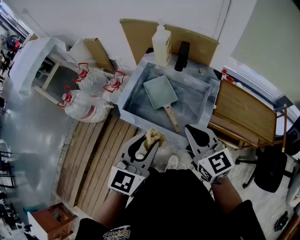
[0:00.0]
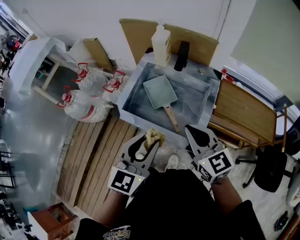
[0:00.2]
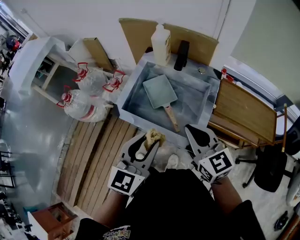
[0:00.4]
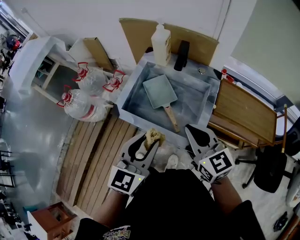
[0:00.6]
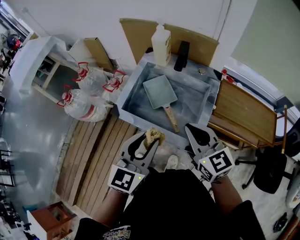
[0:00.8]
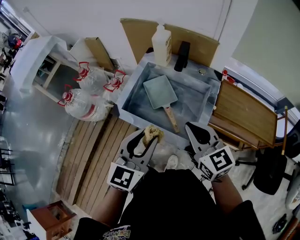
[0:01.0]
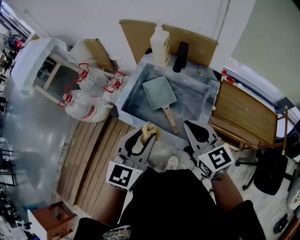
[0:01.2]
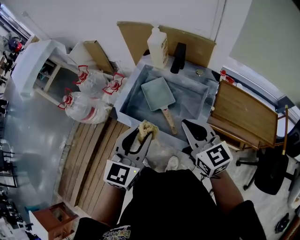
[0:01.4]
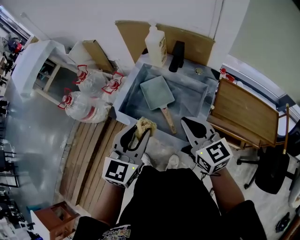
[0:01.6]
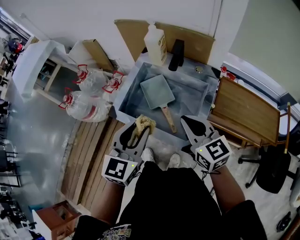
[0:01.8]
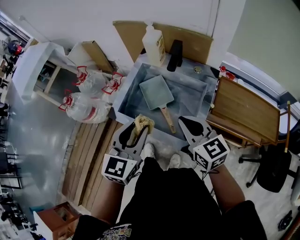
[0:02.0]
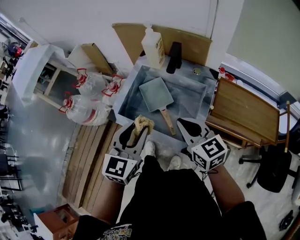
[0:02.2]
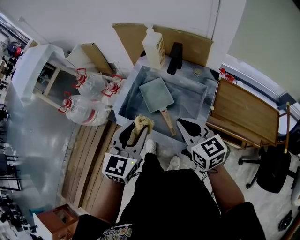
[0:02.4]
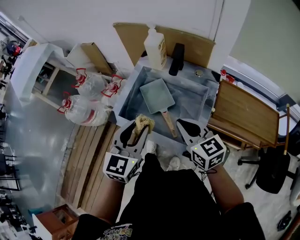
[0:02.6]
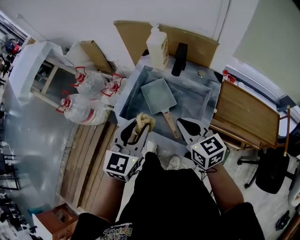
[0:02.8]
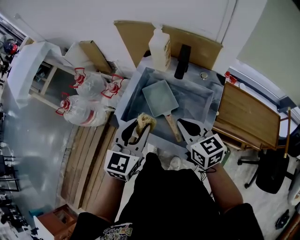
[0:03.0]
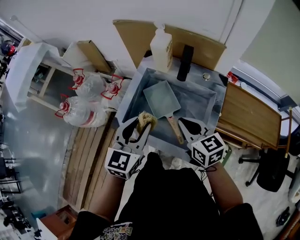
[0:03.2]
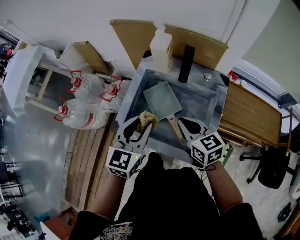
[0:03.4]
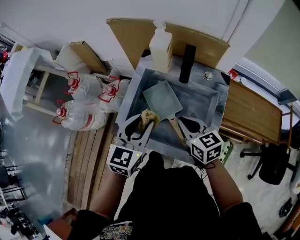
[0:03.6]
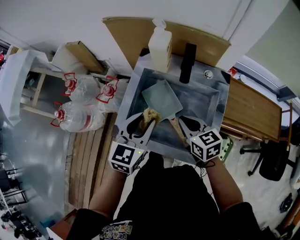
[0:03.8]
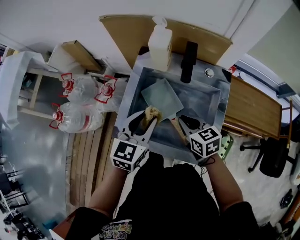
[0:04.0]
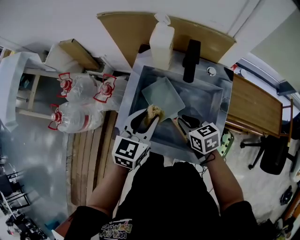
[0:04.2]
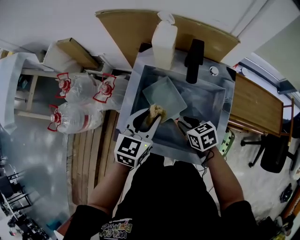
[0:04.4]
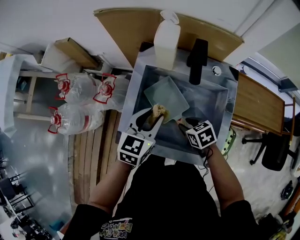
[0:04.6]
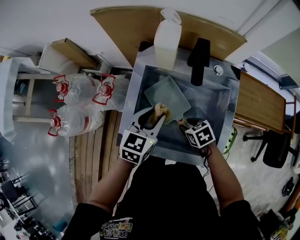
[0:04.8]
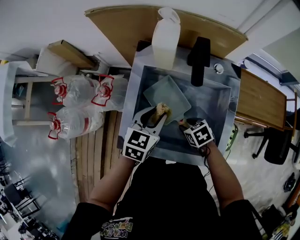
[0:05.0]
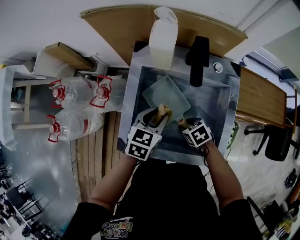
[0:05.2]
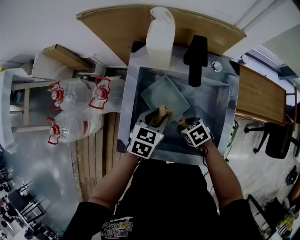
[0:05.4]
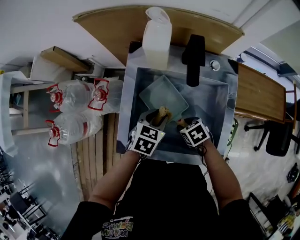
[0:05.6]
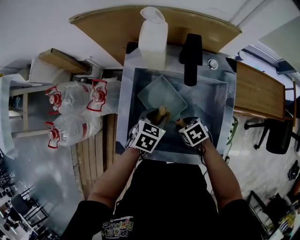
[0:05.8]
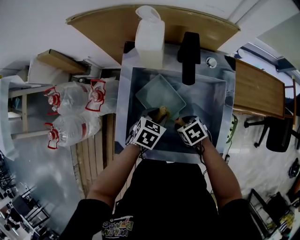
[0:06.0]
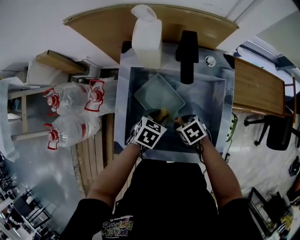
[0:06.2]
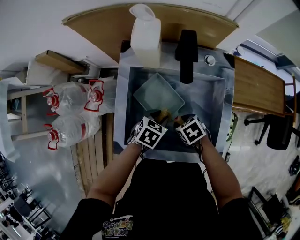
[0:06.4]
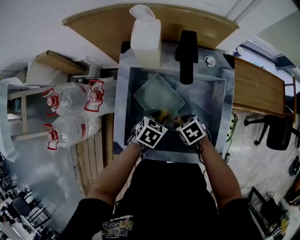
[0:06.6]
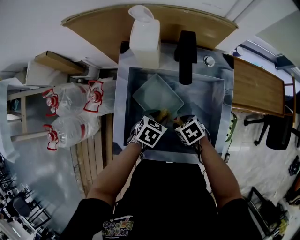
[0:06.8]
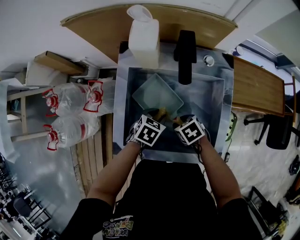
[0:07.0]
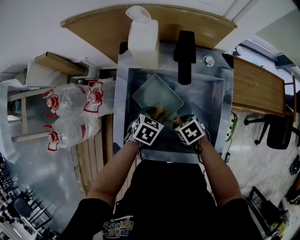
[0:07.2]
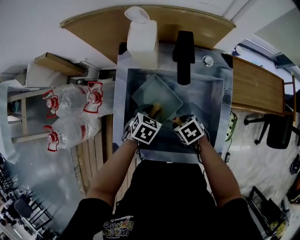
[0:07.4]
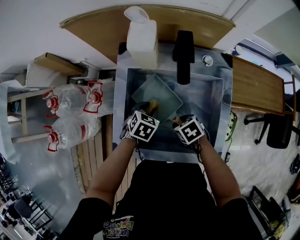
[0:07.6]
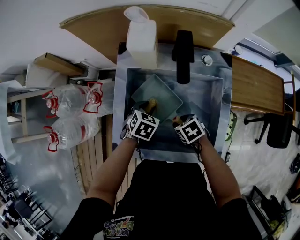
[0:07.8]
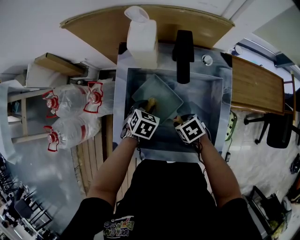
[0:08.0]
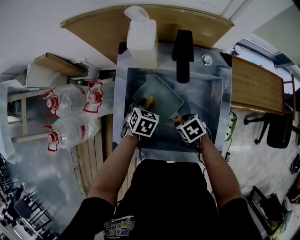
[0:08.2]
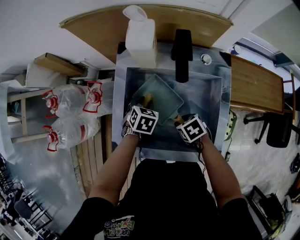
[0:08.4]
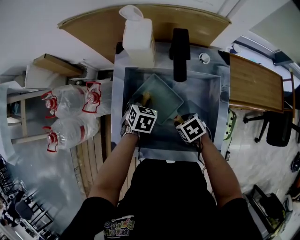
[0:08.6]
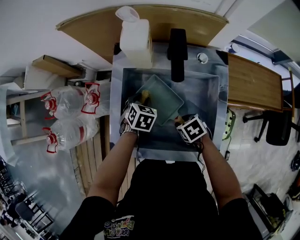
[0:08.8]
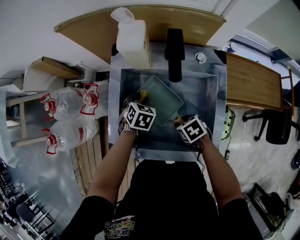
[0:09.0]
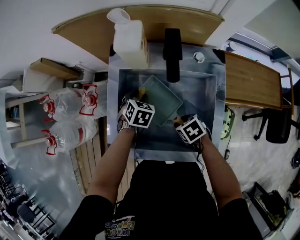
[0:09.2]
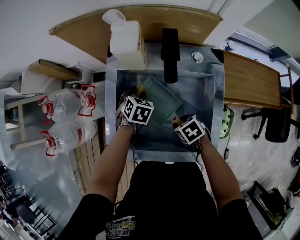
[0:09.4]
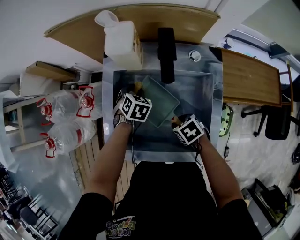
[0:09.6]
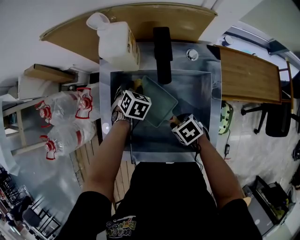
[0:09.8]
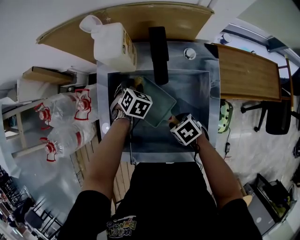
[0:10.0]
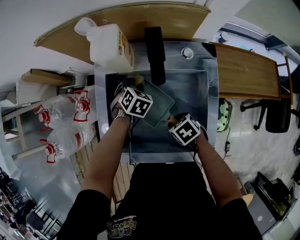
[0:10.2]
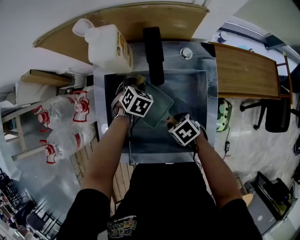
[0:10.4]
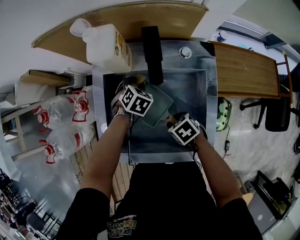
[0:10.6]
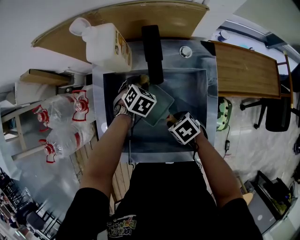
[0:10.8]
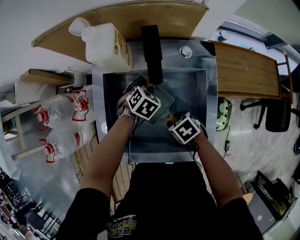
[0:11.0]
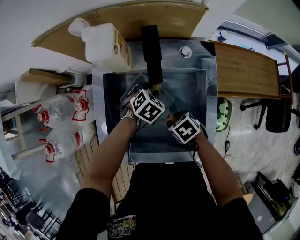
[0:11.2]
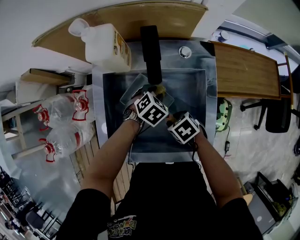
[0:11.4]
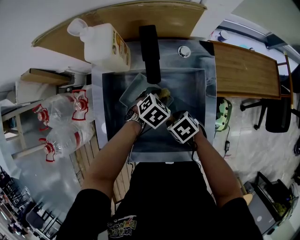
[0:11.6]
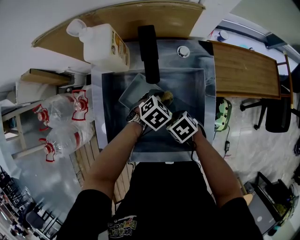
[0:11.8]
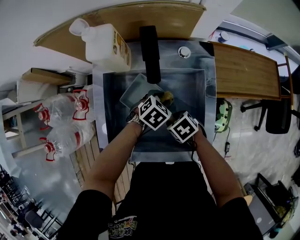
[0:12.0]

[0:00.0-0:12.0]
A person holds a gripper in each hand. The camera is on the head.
0:00.0 to 0:01.6: The grippers make only small movements.
0:01.6 to 0:03.0: The left gripper goes roughly 10 cm forward; the right gripper travels forward and downward by roughly 10 cm.
0:03.0 to 0:04.4: The right gripper heads downward and forward, covering some 20 cm, changes its angle by about 30 degrees, and opens up; the left gripper shifts approximately 15 cm forward and downward.
0:04.4 to 0:06.0: The left gripper goes about 15 cm downward, and rotates approximately 40 degrees; the right gripper travels downward by about 10 cm.
0:06.0 to 0:07.6: The grippers move only a little.
0:07.6 to 0:09.0: The left gripper goes roughly 5 cm forward.
0:09.0 to 0:10.4: The left gripper is displaced to the right by about 10 cm.
0:10.4 to 0:12.0: The left gripper shifts by about 15 cm, and turns by about 20 degrees.

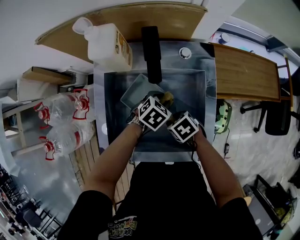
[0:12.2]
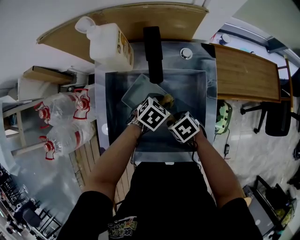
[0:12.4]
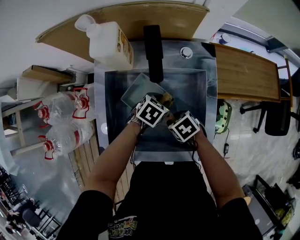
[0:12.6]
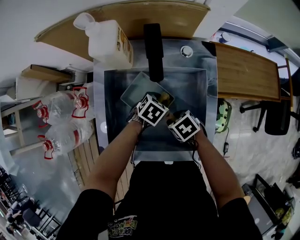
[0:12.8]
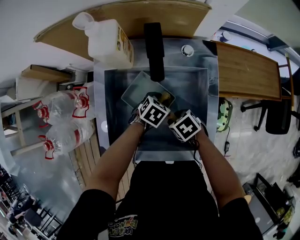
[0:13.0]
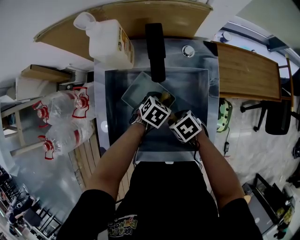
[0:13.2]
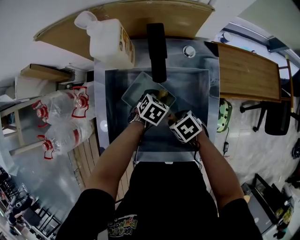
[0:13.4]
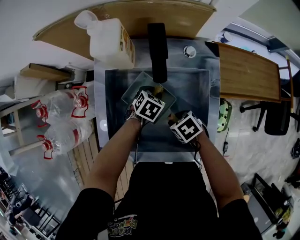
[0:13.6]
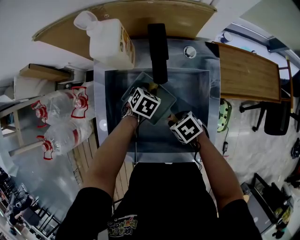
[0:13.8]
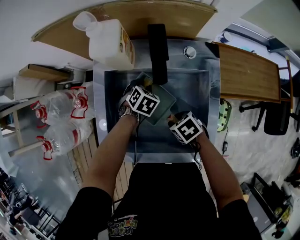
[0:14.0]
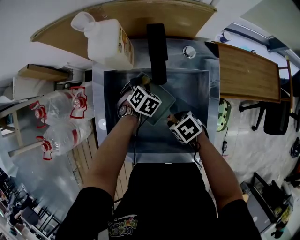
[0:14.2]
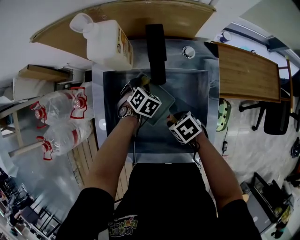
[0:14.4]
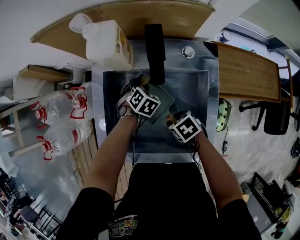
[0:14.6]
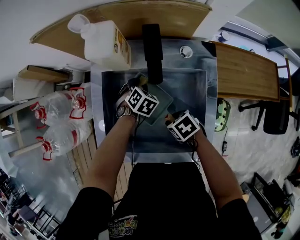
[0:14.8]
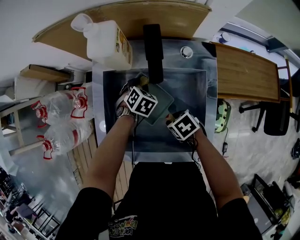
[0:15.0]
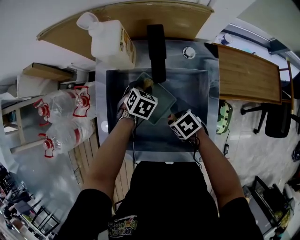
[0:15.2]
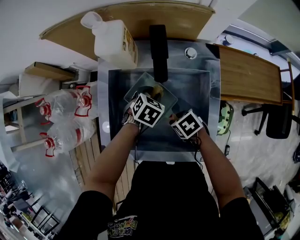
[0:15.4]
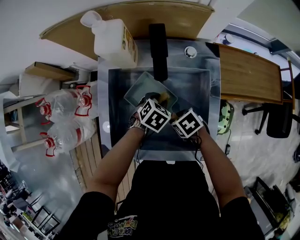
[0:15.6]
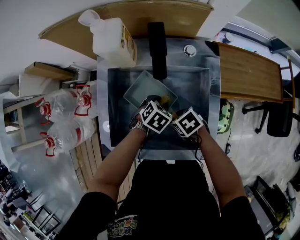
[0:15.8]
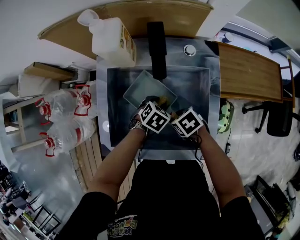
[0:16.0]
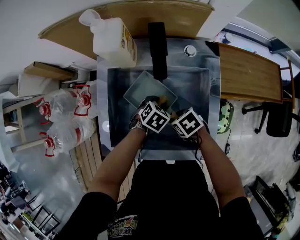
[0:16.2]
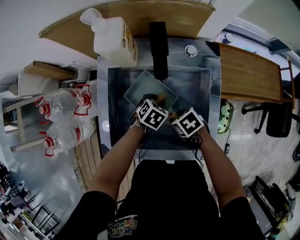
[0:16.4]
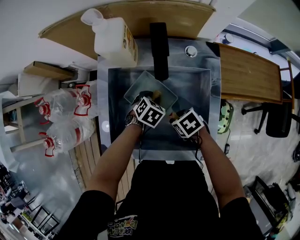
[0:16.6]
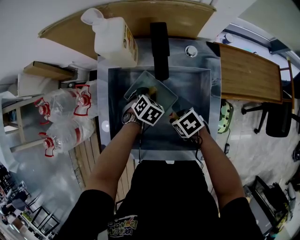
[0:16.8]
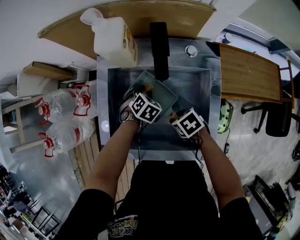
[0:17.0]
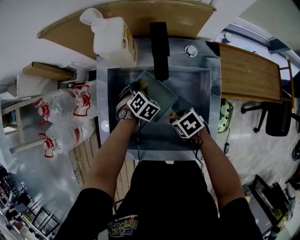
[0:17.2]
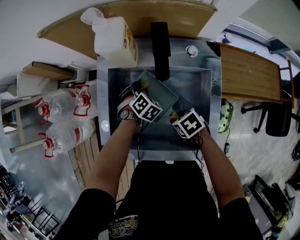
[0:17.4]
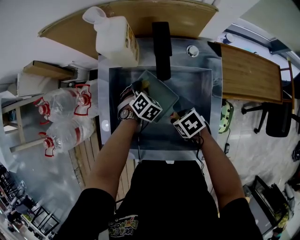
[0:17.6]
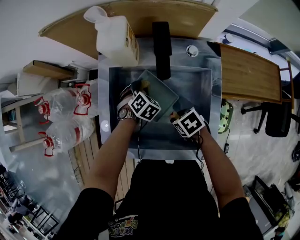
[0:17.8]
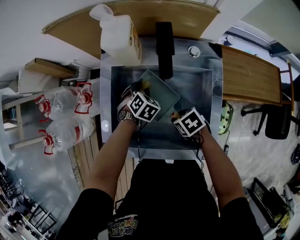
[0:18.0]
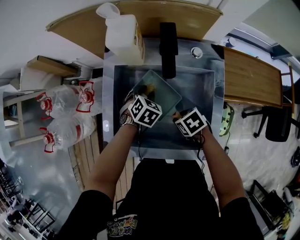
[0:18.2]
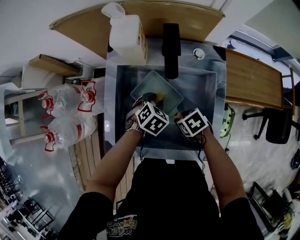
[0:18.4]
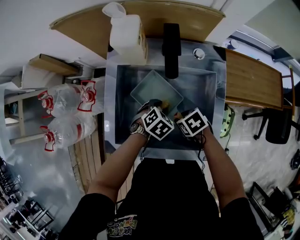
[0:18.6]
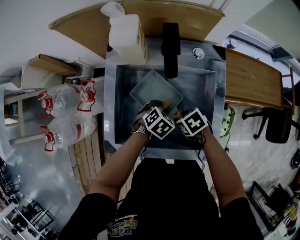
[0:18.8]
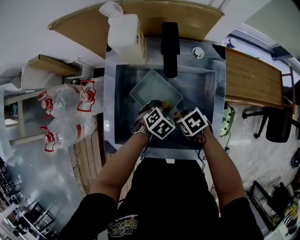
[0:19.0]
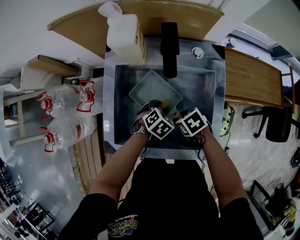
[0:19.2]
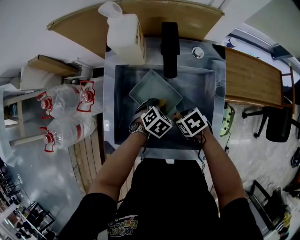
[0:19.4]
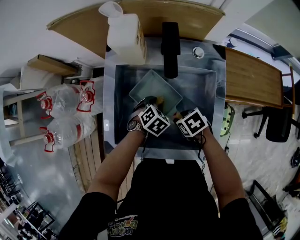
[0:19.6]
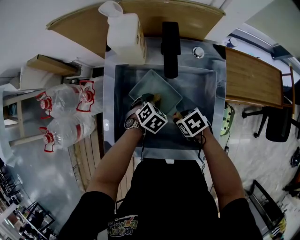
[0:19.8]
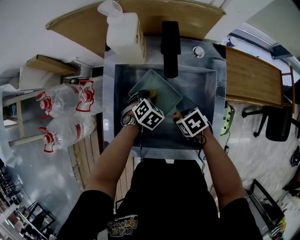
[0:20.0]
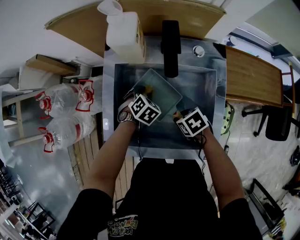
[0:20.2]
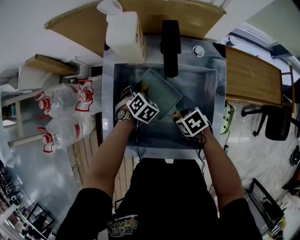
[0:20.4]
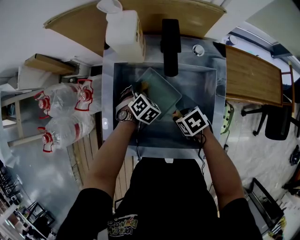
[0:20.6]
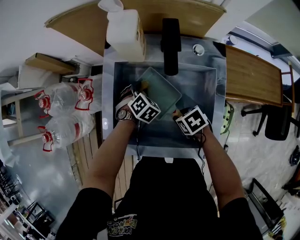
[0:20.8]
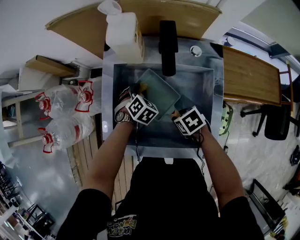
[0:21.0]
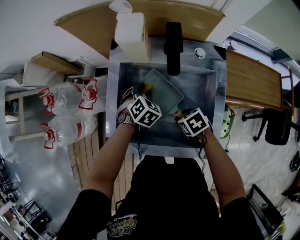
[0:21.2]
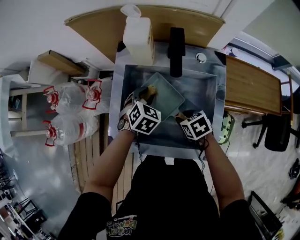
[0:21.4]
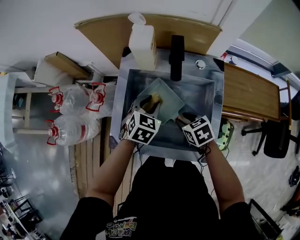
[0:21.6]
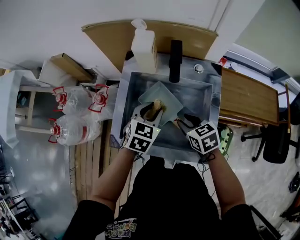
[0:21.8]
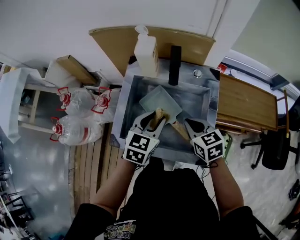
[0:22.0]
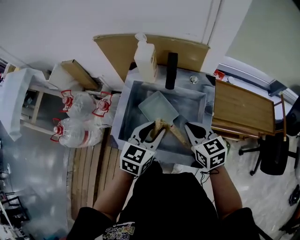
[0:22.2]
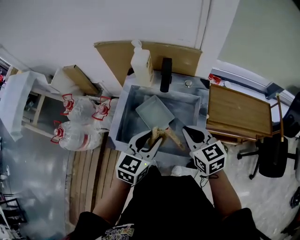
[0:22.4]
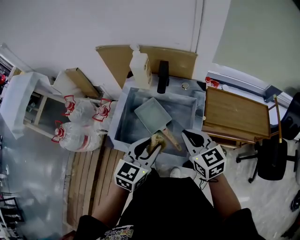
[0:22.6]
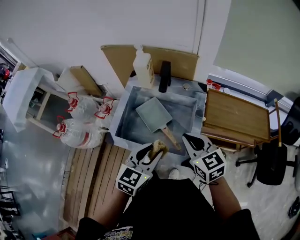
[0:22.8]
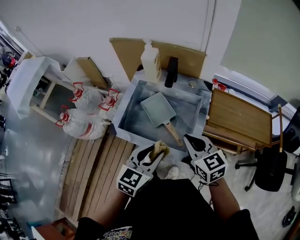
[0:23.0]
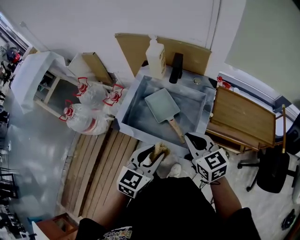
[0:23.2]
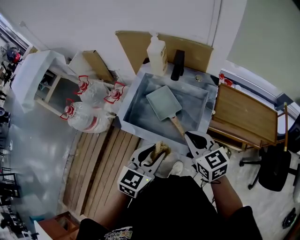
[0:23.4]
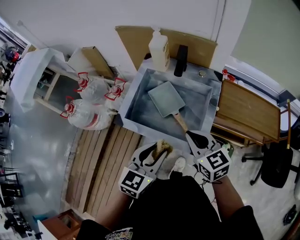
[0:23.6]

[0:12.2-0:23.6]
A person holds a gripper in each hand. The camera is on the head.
0:12.2 to 0:13.6: The left gripper ends up some 5 cm from where it was.
0:13.6 to 0:15.0: The left gripper ends up some 5 cm from where it was.
0:15.0 to 0:16.4: The left gripper ends up about 10 cm from where it was.
0:16.4 to 0:17.8: The left gripper ends up roughly 10 cm from where it was, and turns by some 20 degrees.
0:17.8 to 0:19.4: The left gripper changes place by about 10 cm.
0:19.4 to 0:20.8: The left gripper shifts by approximately 10 cm.
0:20.8 to 0:22.2: Both grippers travel together upward, about 25 cm. The left gripper tilts its fingers roughly 40 degrees upward, while the right gripper points its fingers roughly 40 degrees further upward, and closes its fingers.
0:22.2 to 0:23.6: The right gripper travels backward by some 10 cm; the left gripper is displaced backward by about 15 cm.
